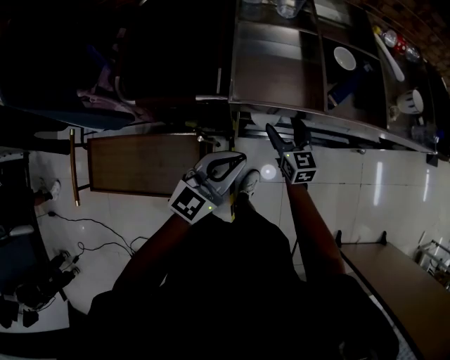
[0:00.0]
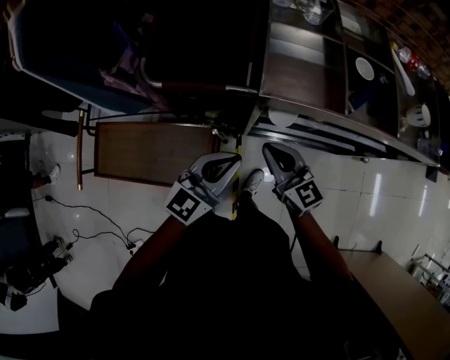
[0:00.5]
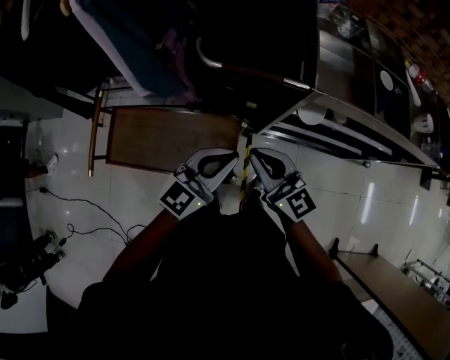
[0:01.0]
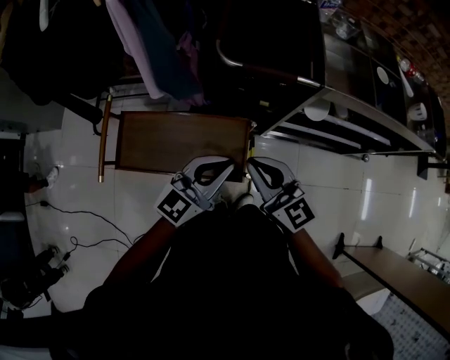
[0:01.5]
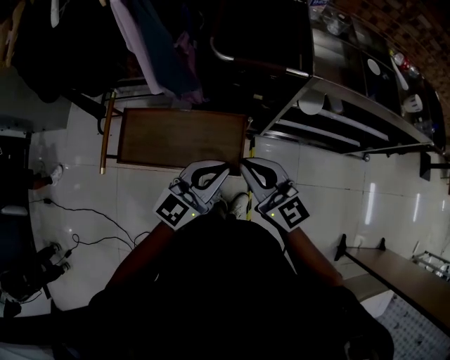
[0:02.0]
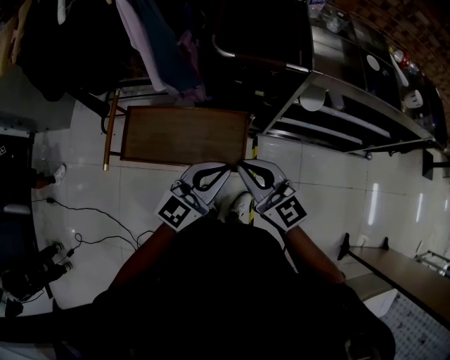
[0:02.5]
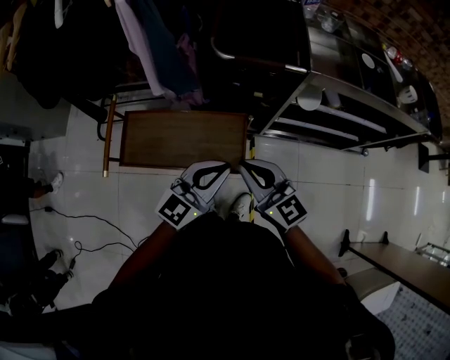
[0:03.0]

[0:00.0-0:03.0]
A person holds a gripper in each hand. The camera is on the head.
0:00.0 to 0:01.5: The left gripper travels to the left and backward by some 30 cm. The right gripper heads to the left, backward and upward, covering roughly 50 cm, changes its angle by approximately 30 degrees, and closes.
0:01.5 to 0:03.0: Both grippers move backward, about 5 cm.

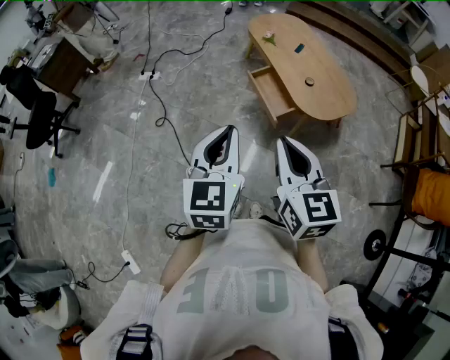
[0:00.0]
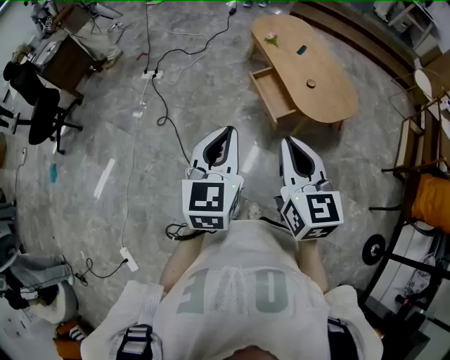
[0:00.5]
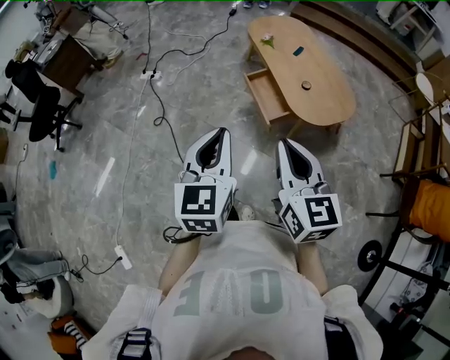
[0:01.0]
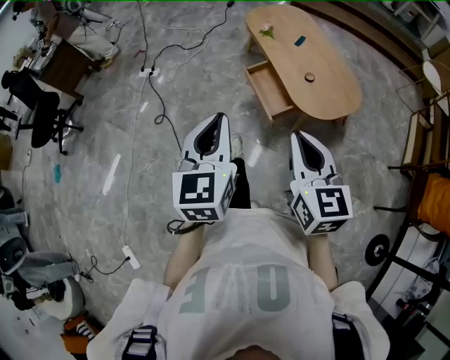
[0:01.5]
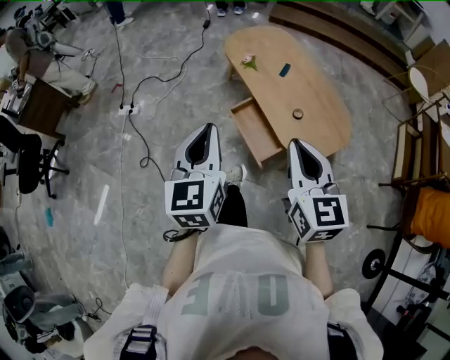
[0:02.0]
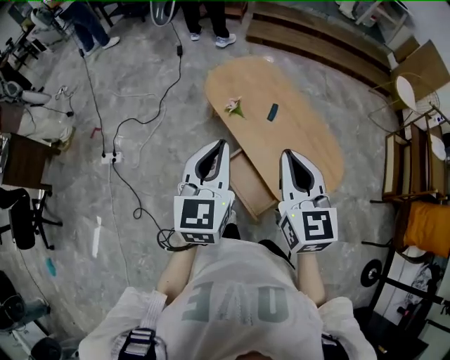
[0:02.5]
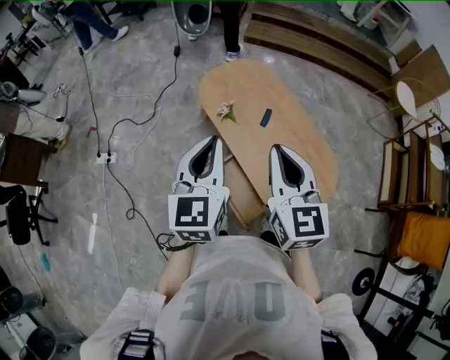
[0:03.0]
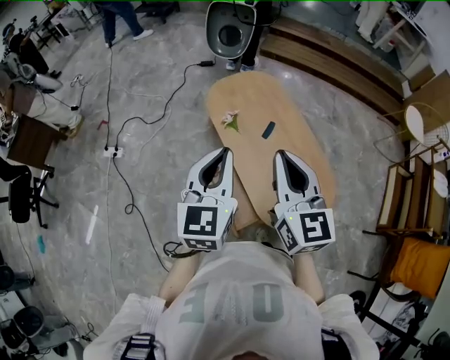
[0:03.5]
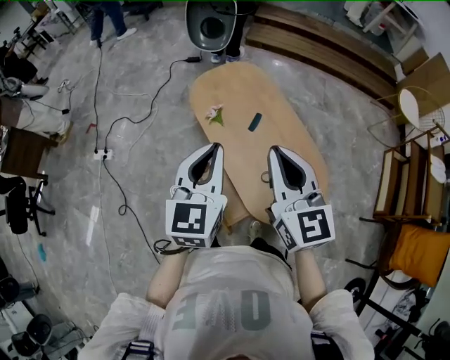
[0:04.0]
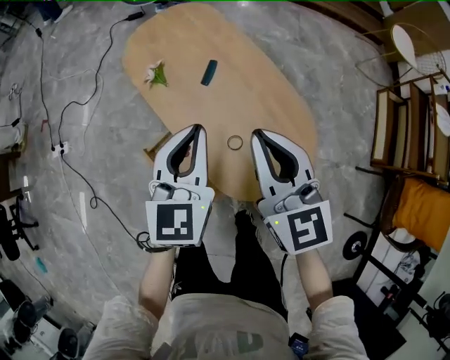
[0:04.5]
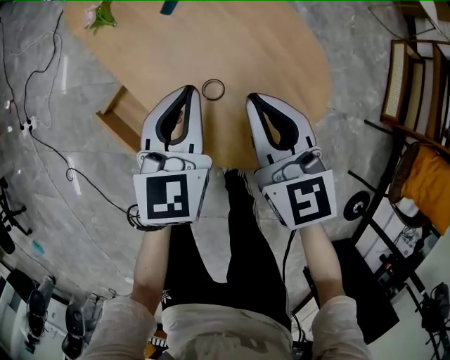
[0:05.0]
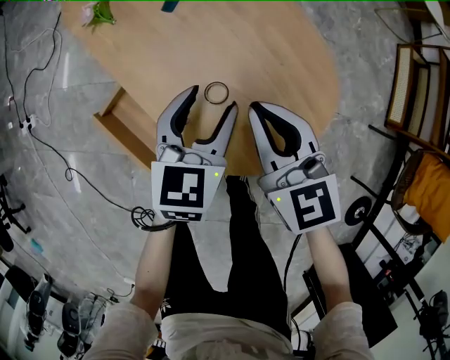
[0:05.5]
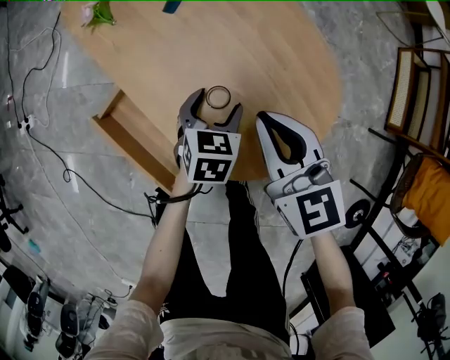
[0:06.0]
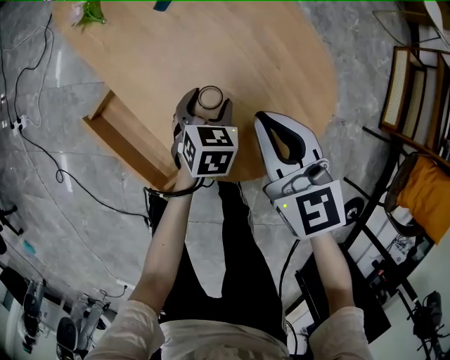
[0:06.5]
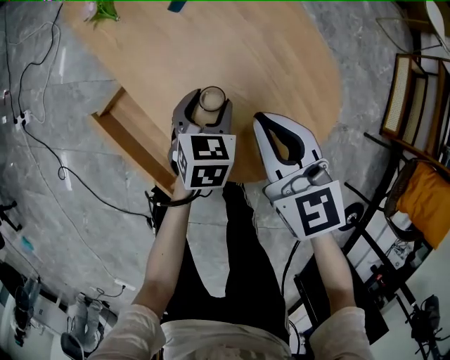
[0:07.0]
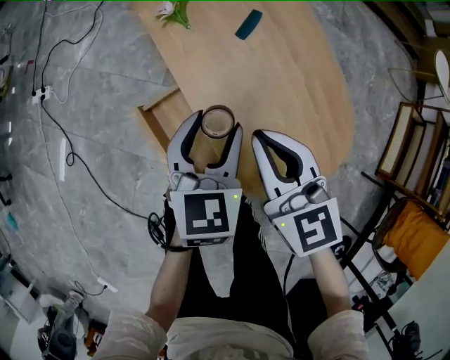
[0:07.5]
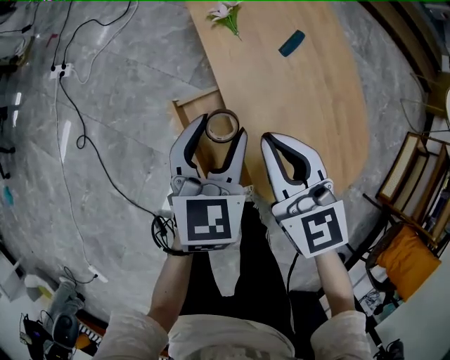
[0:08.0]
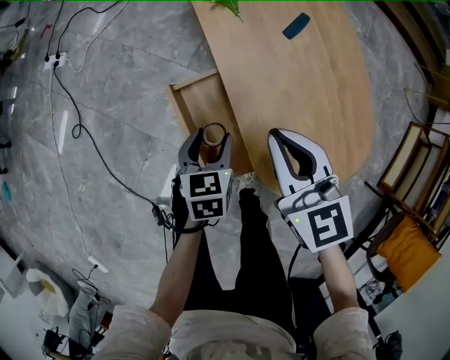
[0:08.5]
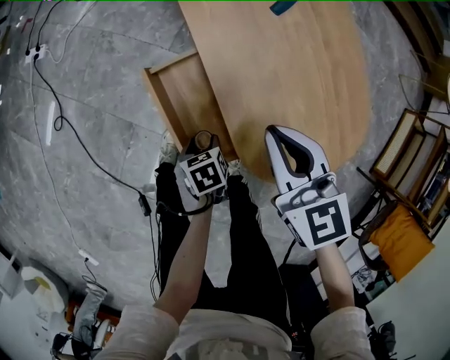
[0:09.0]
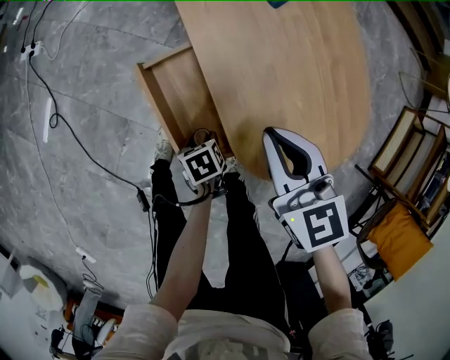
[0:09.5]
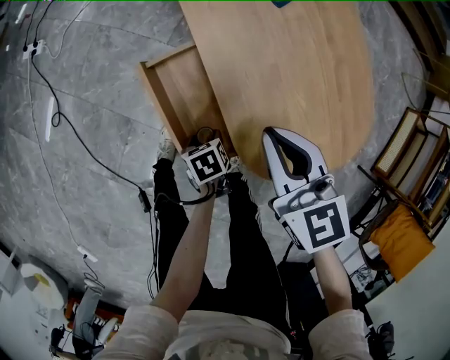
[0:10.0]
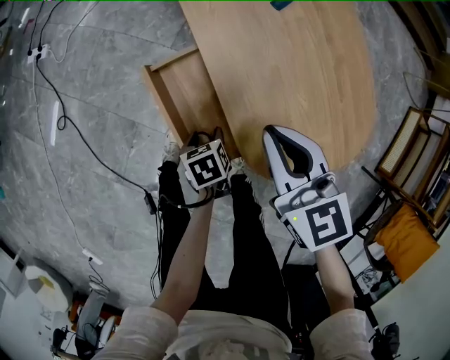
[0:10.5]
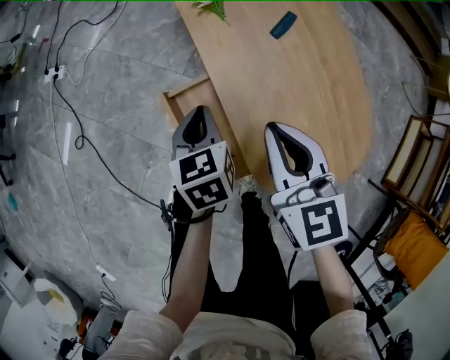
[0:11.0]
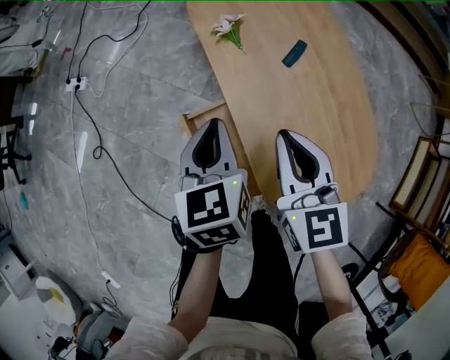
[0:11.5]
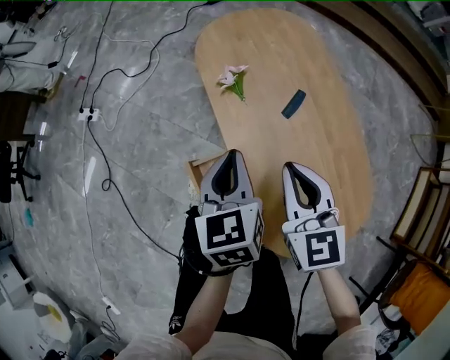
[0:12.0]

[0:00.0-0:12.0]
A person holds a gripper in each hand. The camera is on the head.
0:00.0 to 0:02.0: The right gripper shifts some 30 cm forward and to the right. Meanwhile the left gripper goes approximately 30 cm forward.
0:02.0 to 0:04.0: The right gripper travels forward by roughly 30 cm. Meanwhile the left gripper travels forward and to the right by approximately 35 cm.
0:04.0 to 0:06.0: The left gripper goes roughly 60 cm downward and to the right, tilts its fingers roughly 40 degrees downward, and opens up; the right gripper moves downward, about 40 cm, and turns by roughly 20 degrees.
0:06.0 to 0:08.0: The grippers both shift to the left and upward by some 25 cm. The left gripper rotates some 30 degrees.
0:08.0 to 0:10.0: The right gripper heads downward, covering roughly 10 cm; the left gripper travels downward by about 35 cm, and tips its fingers downward by some 40 degrees.
0:10.0 to 0:12.0: The right gripper shifts by roughly 15 cm. Meanwhile the left gripper travels upward by some 35 cm, tilts its fingers approximately 40 degrees upward, and closes up.

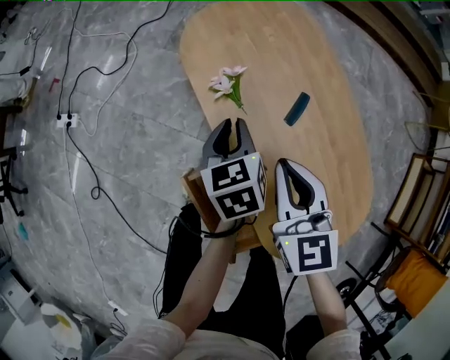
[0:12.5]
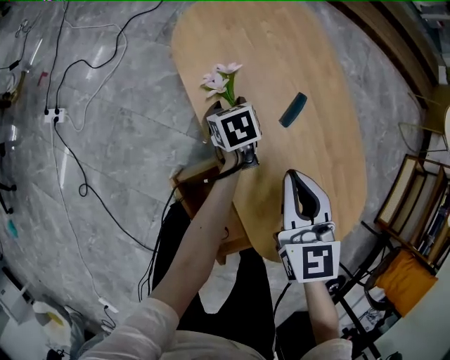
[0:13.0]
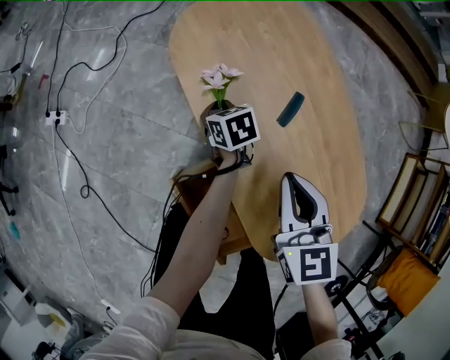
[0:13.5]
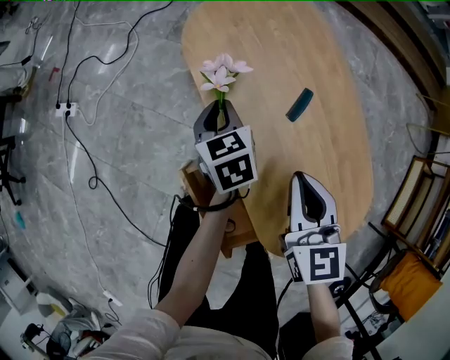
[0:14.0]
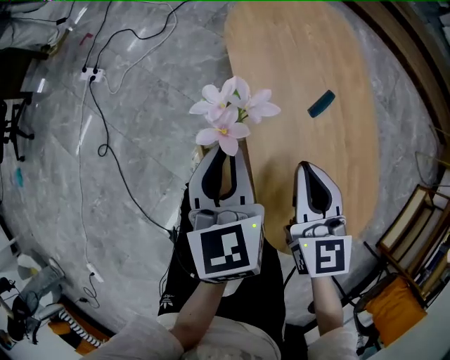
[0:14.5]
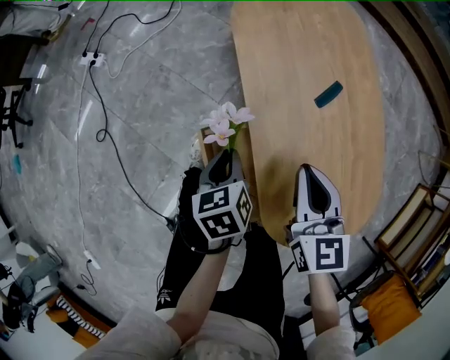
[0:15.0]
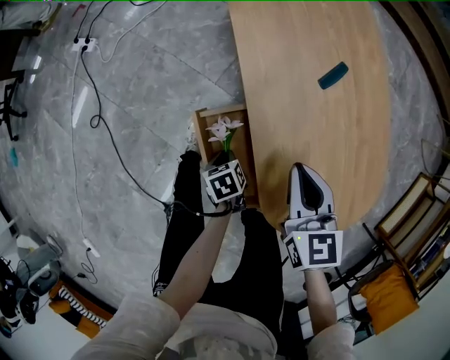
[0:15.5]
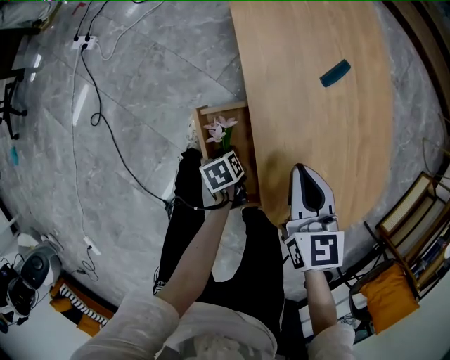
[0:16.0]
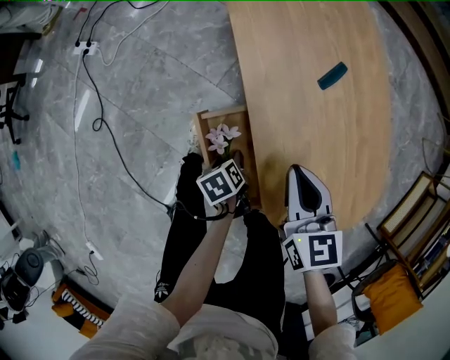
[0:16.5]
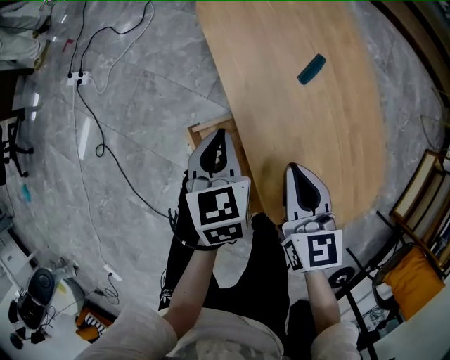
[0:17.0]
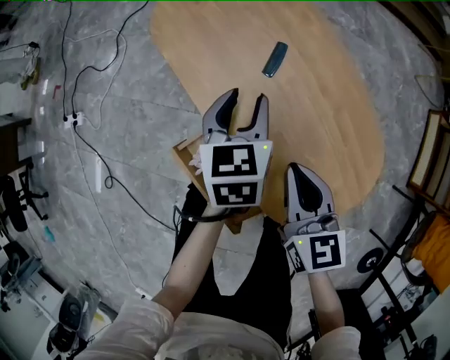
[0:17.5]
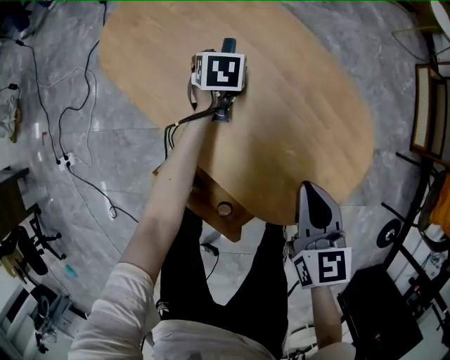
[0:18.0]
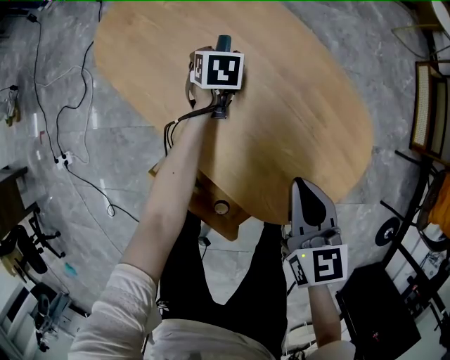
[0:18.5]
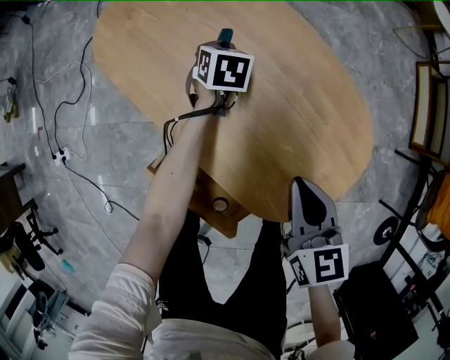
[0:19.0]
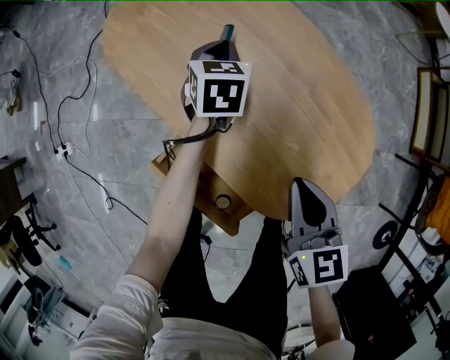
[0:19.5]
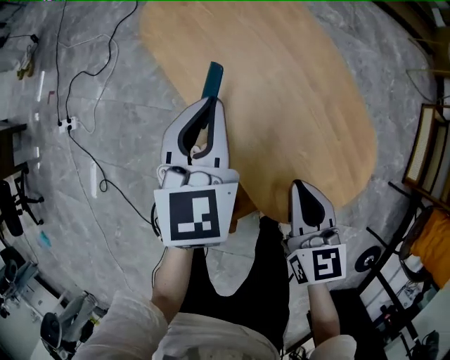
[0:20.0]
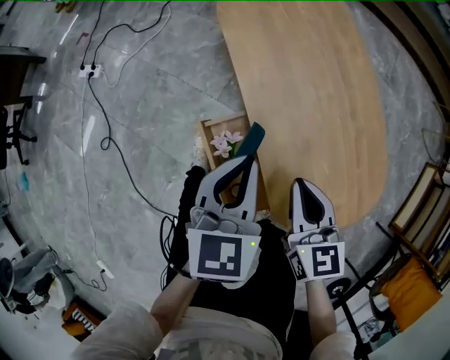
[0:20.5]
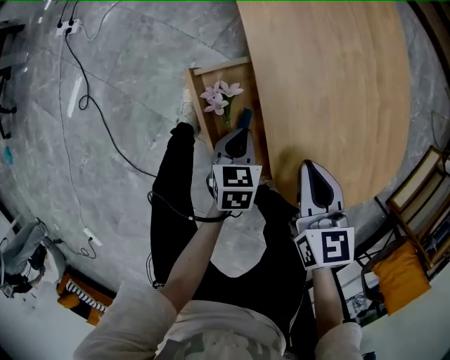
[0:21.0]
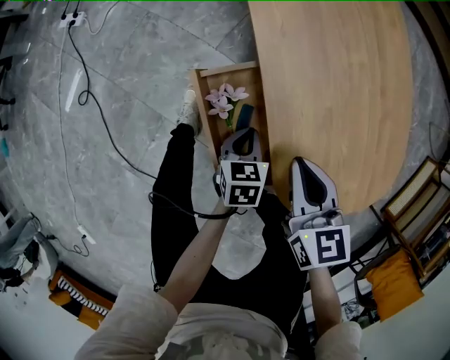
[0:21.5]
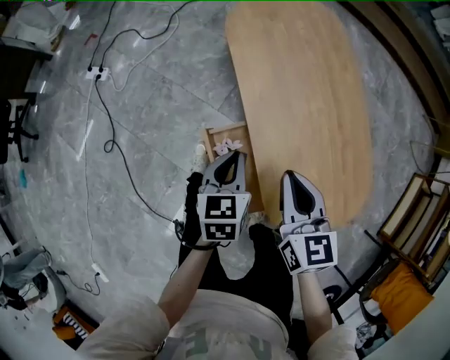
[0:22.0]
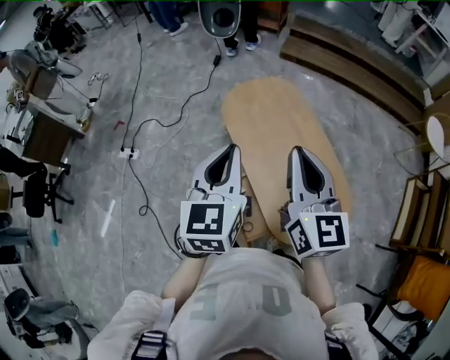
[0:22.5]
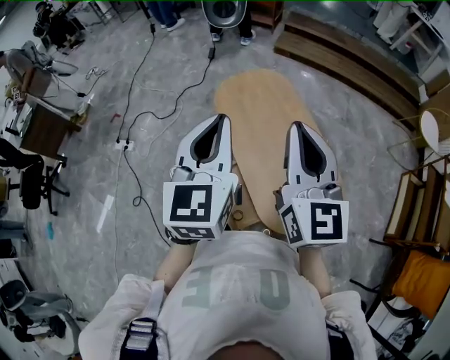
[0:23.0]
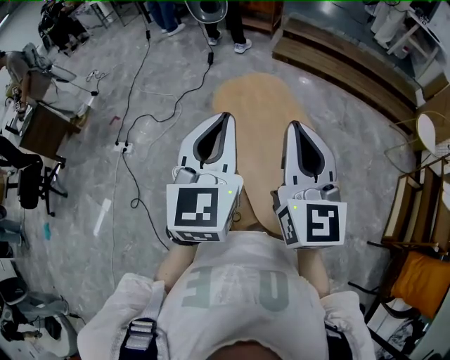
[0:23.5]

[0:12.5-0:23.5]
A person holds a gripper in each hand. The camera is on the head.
0:12.5 to 0:14.5: The right gripper travels backward by approximately 5 cm; the left gripper shifts about 20 cm upward, backward and to the left, and opens and closes again.
0:14.5 to 0:16.0: The left gripper goes approximately 40 cm downward and backward, and tips its fingers downward by approximately 40 degrees, while the right gripper is displaced downward and backward by approximately 10 cm.
0:16.0 to 0:18.0: The left gripper changes place by roughly 40 cm, twists roughly 70 degrees clockwise, seen from behind, and opens up. Meanwhile the right gripper ends up some 15 cm from where it was, and turns by approximately 30 degrees.
0:18.0 to 0:20.0: The left gripper is displaced upward and backward by some 30 cm, tilts its fingers approximately 30 degrees upward, and closes up, while the right gripper heads to the left, covering about 5 cm.
0:20.0 to 0:21.5: The right gripper shifts roughly 15 cm to the left and downward, and changes its angle by approximately 20 degrees, while the left gripper is displaced downward and backward by about 35 cm, and tilts its fingers some 30 degrees downward.
0:21.5 to 0:23.5: The grippers both shift upward by approximately 60 cm. The right gripper points its fingers roughly 50 degrees further upward, while the left gripper angles its fingers upward, by roughly 50 degrees.
